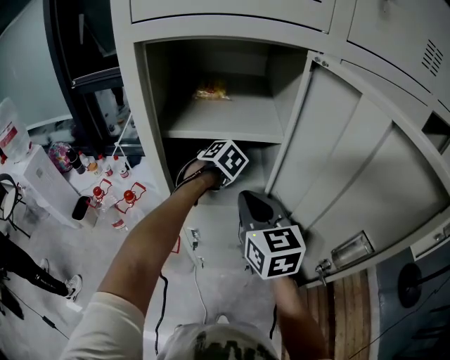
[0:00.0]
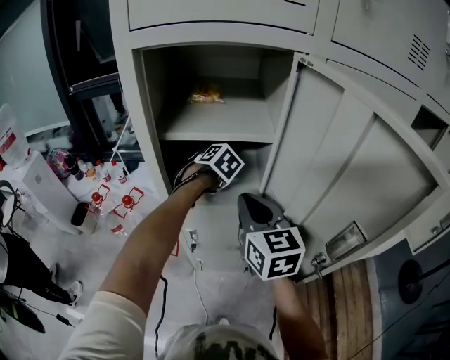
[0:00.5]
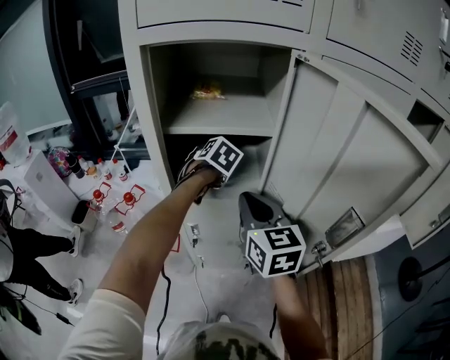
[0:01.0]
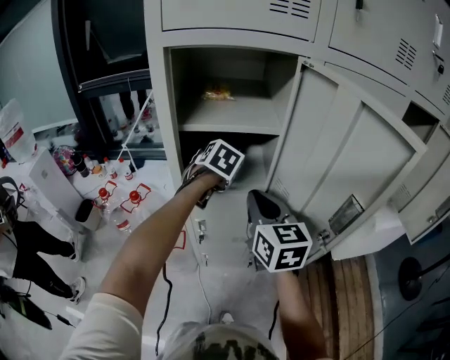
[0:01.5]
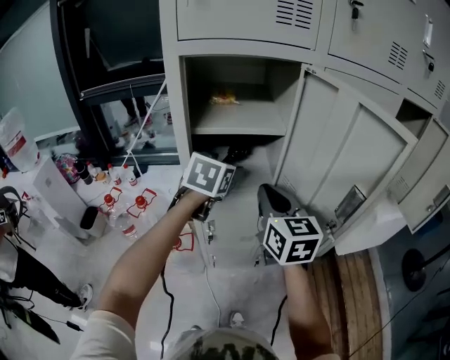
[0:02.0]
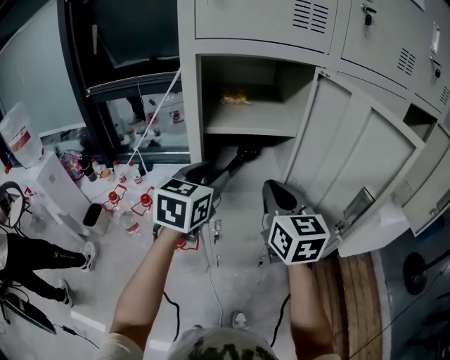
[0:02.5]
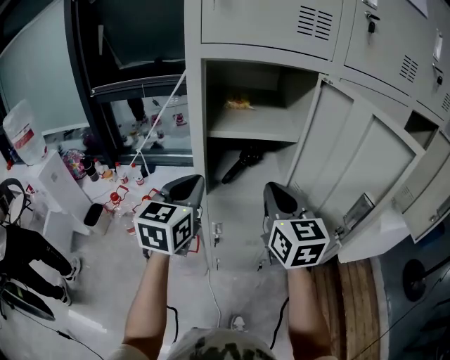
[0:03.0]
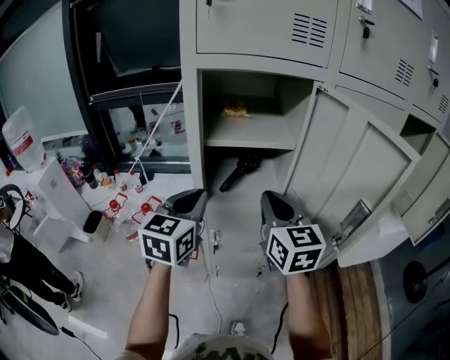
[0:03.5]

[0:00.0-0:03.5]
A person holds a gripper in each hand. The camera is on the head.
0:00.0 to 0:02.0: The right gripper moves backward, roughly 5 cm. Meanwhile the left gripper travels upward and backward by some 20 cm, turns by about 40 degrees, and opens.
0:02.0 to 0:03.5: The left gripper goes roughly 15 cm backward and to the left, changes its angle by approximately 20 degrees, and closes up.

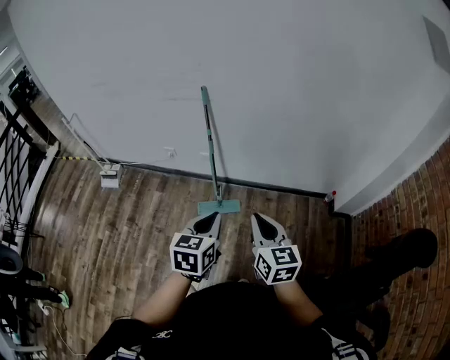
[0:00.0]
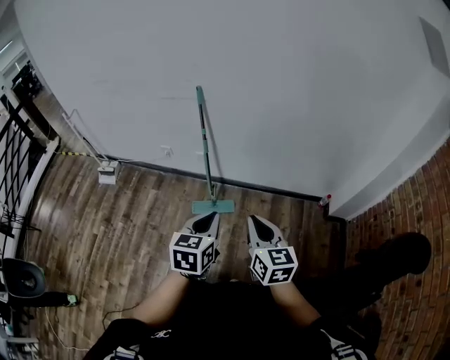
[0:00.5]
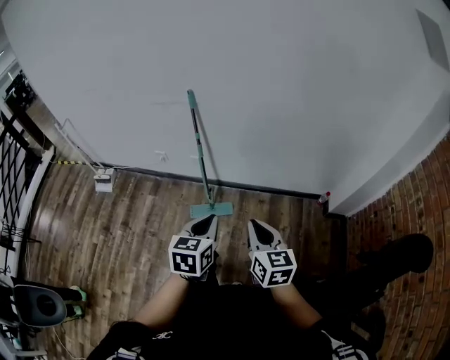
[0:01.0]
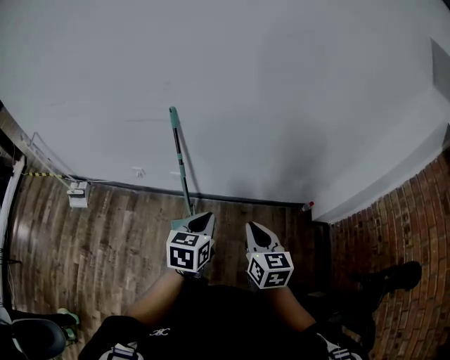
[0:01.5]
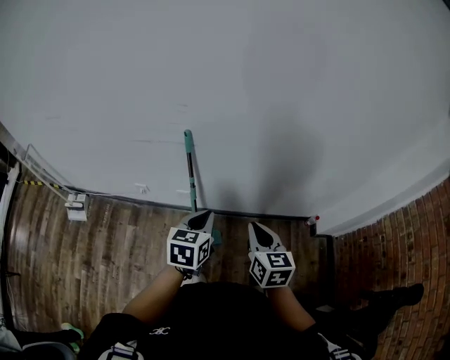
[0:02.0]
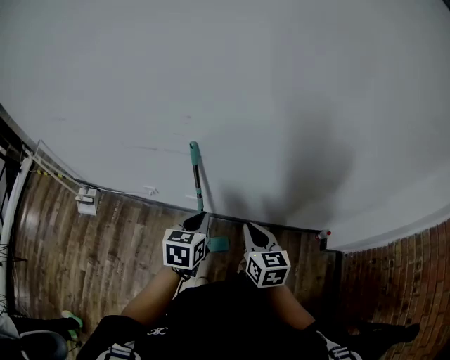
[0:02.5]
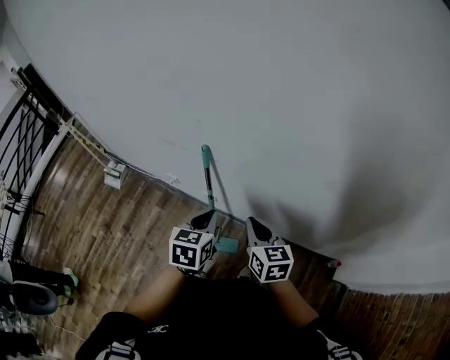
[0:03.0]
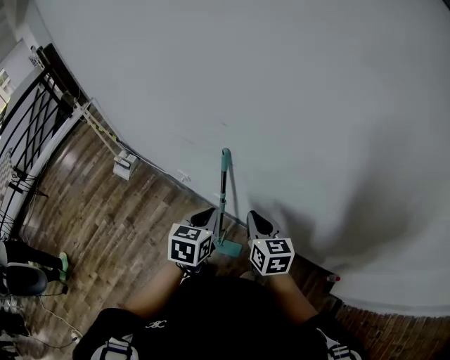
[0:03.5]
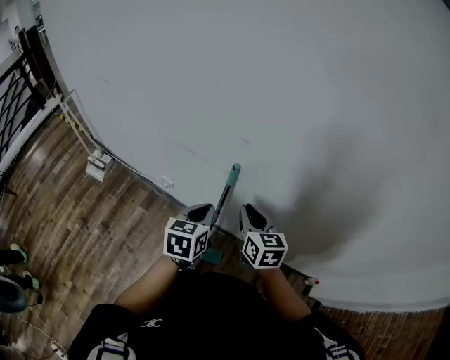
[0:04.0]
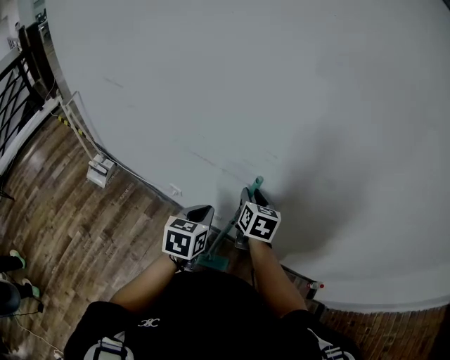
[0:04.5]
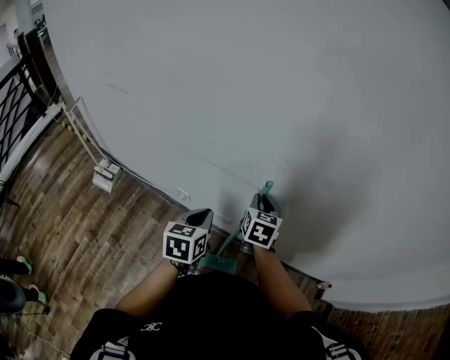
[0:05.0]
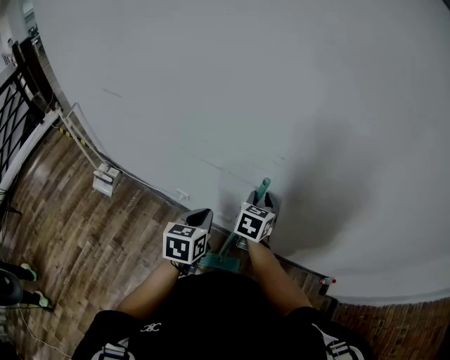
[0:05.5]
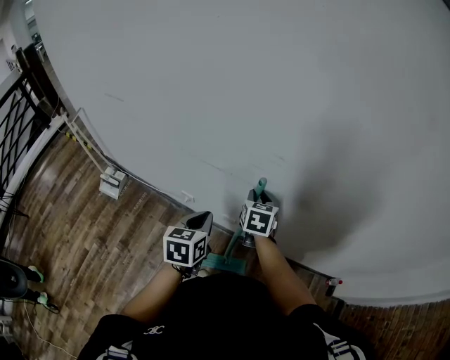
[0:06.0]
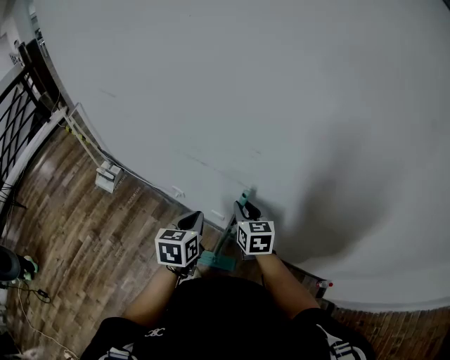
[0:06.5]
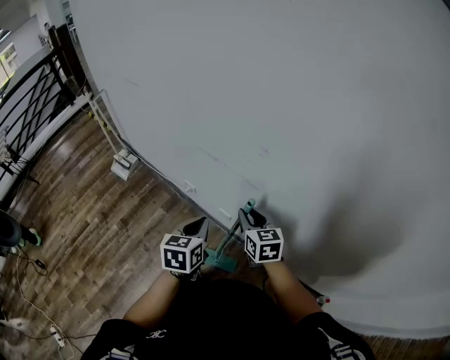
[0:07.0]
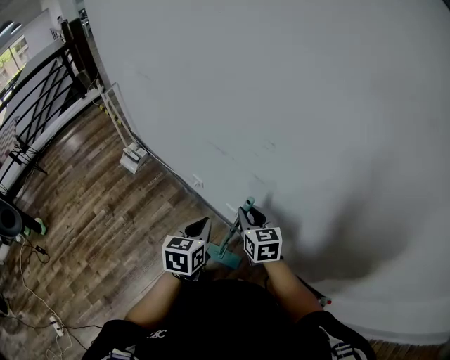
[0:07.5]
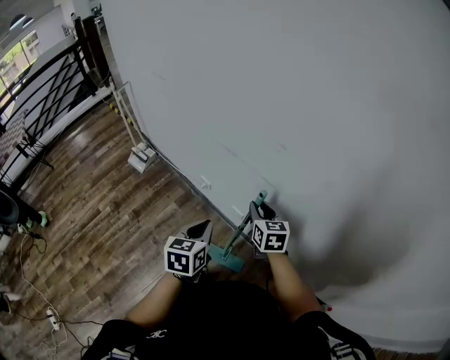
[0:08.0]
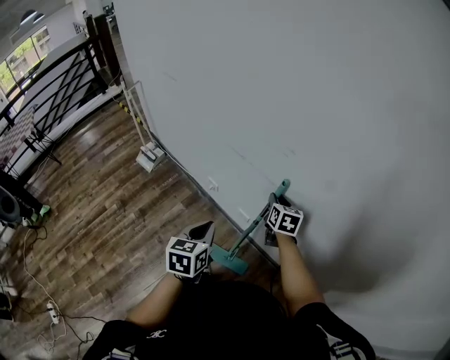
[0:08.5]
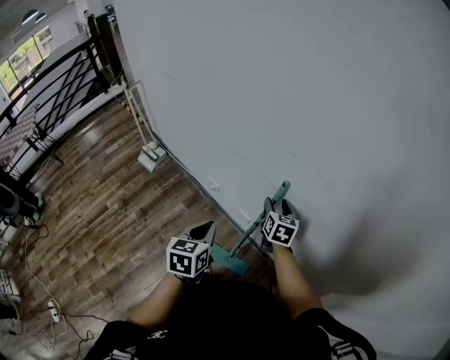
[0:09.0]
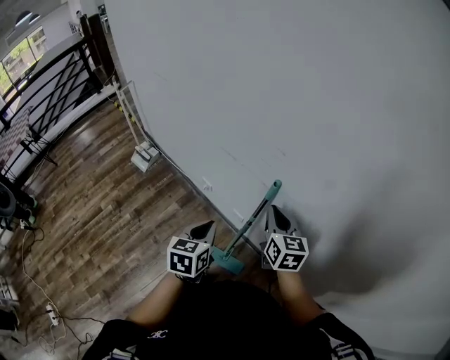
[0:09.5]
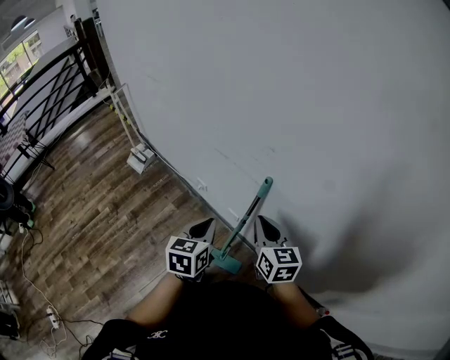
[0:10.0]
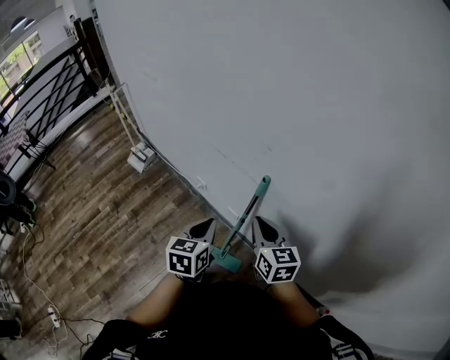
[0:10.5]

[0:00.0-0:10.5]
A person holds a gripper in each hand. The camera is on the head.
0:00.0 to 0:02.0: The grippers both shift forward by approximately 25 cm.
0:02.0 to 0:04.0: The right gripper shifts by roughly 25 cm, and turns by some 30 degrees, while the left gripper changes place by some 15 cm, and changes its angle by some 20 degrees.
0:04.0 to 0:06.5: Both grippers travel together to the left, some 5 cm.
0:06.5 to 0:08.5: The left gripper is displaced backward by roughly 10 cm. Meanwhile the right gripper changes place by roughly 5 cm.
0:08.5 to 0:10.5: The left gripper shifts some 5 cm to the right. The right gripper travels backward and upward by approximately 15 cm, and closes its fingers.

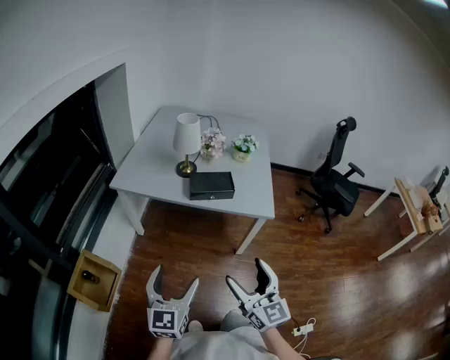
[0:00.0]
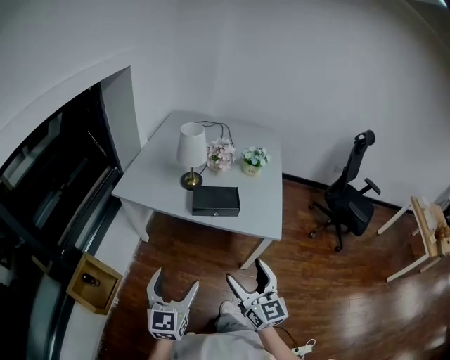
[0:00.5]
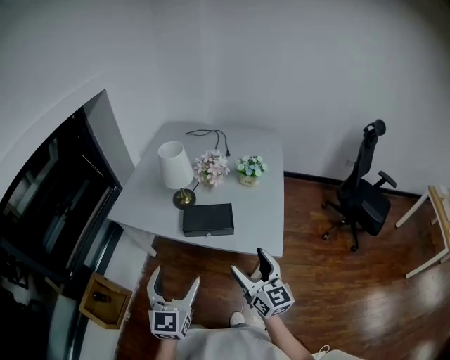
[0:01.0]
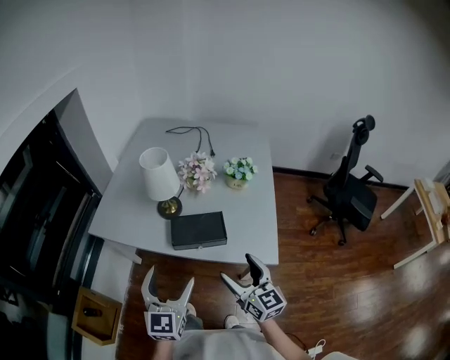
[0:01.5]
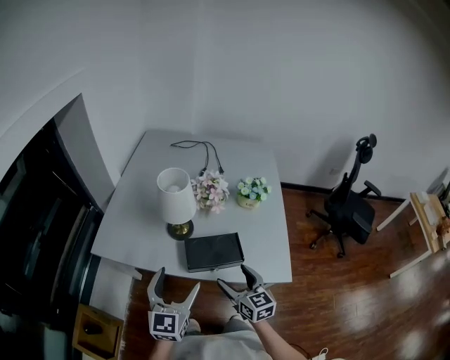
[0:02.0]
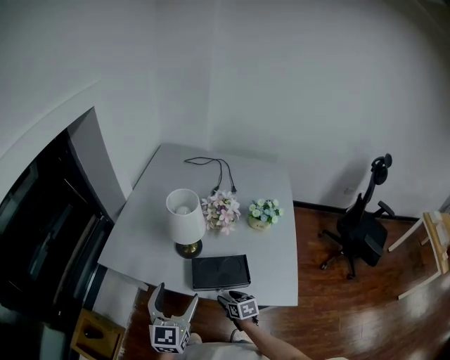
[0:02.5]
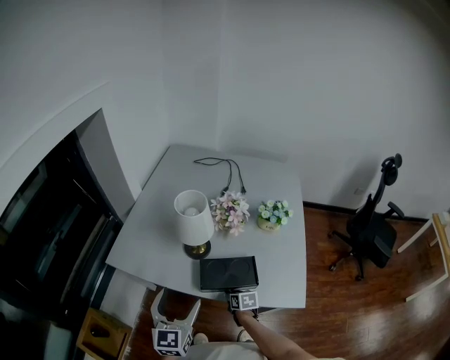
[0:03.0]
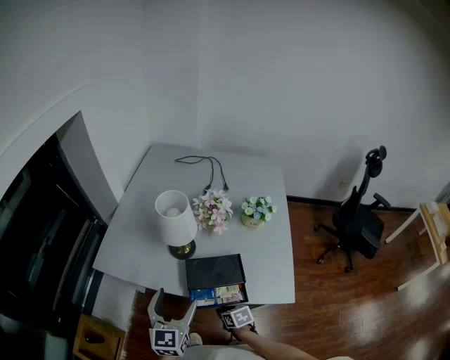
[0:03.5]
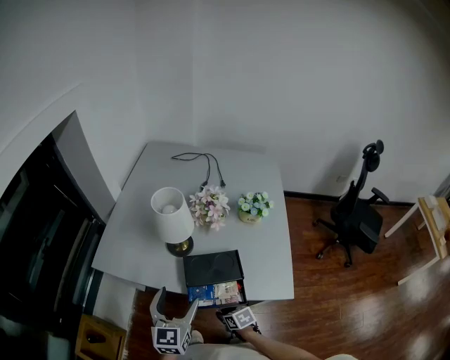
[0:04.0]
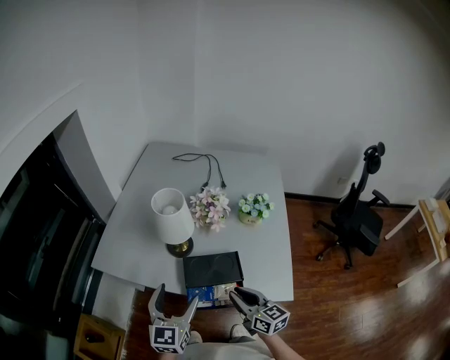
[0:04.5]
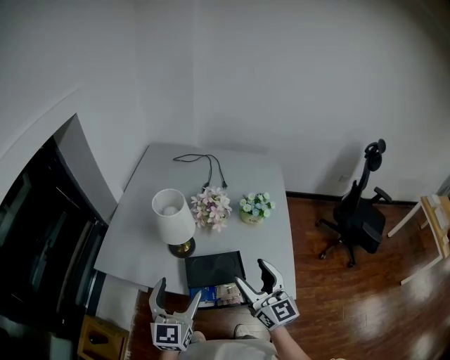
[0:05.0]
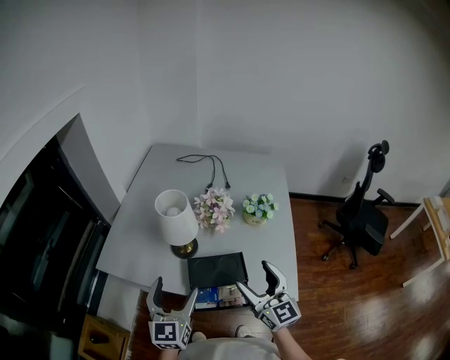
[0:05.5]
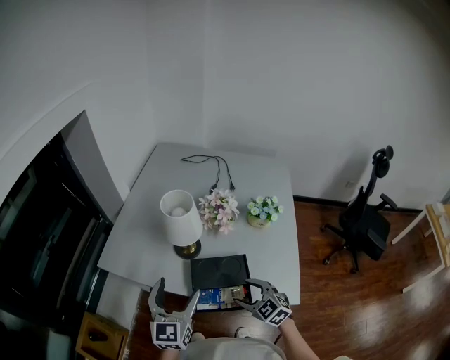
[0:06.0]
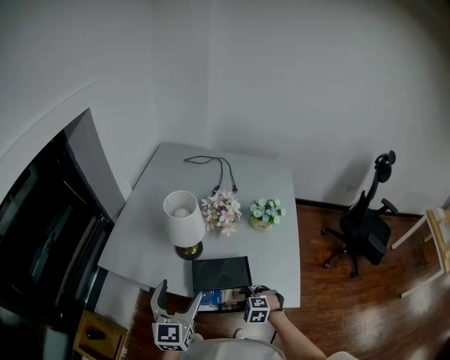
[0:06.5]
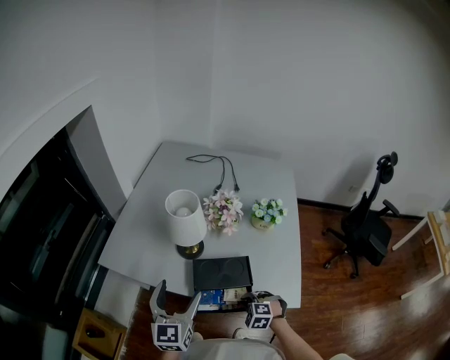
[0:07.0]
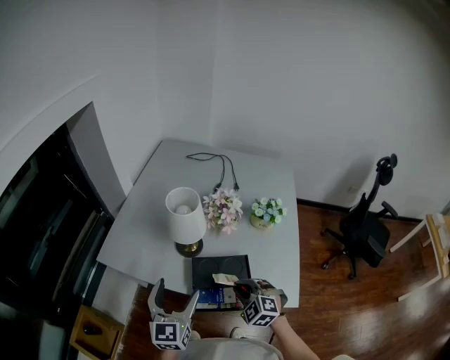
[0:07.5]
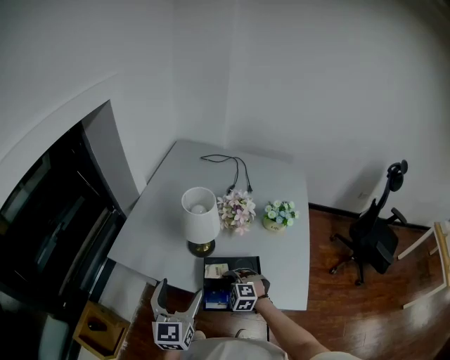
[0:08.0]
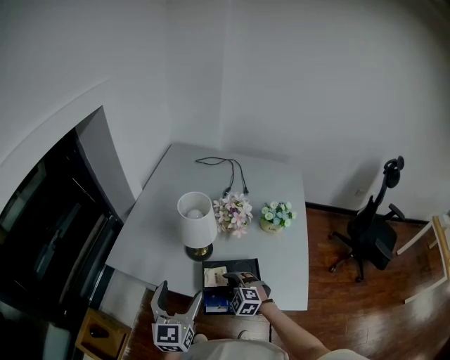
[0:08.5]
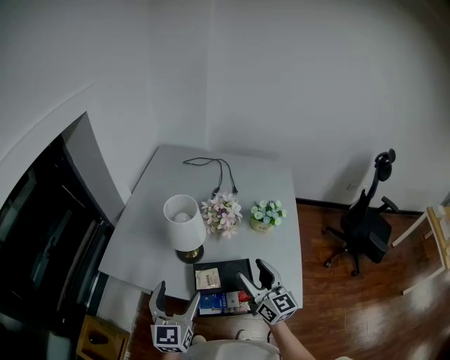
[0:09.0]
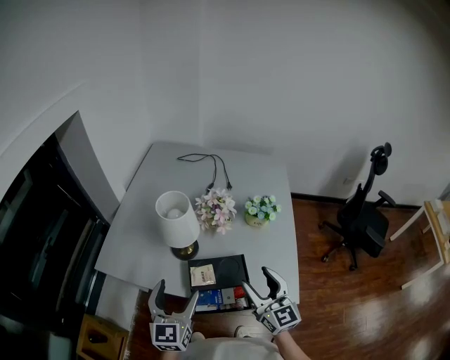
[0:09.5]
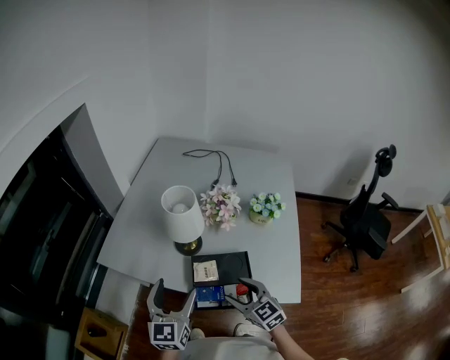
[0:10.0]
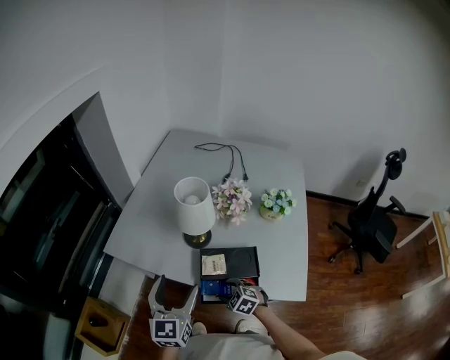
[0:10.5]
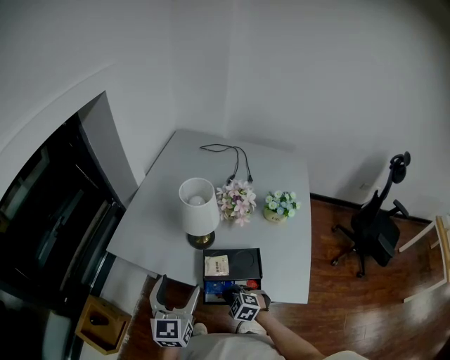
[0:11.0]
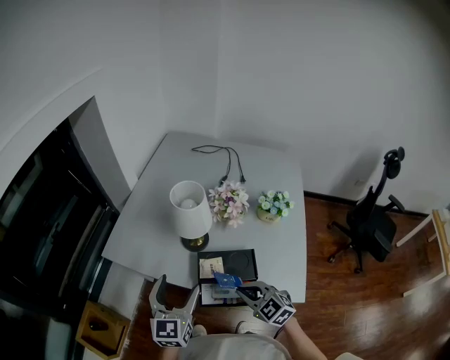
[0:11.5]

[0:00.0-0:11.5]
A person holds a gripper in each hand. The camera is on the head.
0:00.0 to 0:02.0: The two grippers go some 40 cm forward. The right gripper rotates roughly 20 degrees.
0:02.0 to 0:04.0: The right gripper moves downward, some 20 cm, points its fingers approximately 40 degrees further downward, and closes its fingers.
0:04.0 to 0:06.0: The right gripper travels upward and forward by approximately 20 cm, rotates around the line of its fingers by approximately 50 degrees, counterclockwise from behind, and opens. Meanwhile the left gripper changes place by approximately 5 cm.
0:06.0 to 0:07.5: The right gripper reaches some 15 cm downward, then returns, turns by about 20 degrees, and closes its fingers.
0:07.5 to 0:09.5: The right gripper travels upward and to the right by about 15 cm, points its fingers approximately 40 degrees further upward, and opens its fingers.
0:09.5 to 0:11.5: The right gripper heads downward and to the left, covering about 15 cm, angles its fingers downward, by about 40 degrees, and closes up.

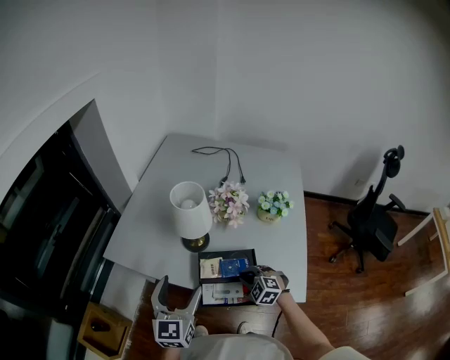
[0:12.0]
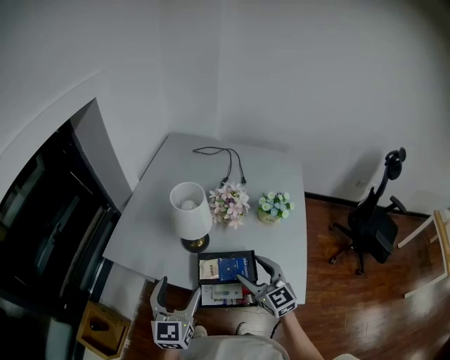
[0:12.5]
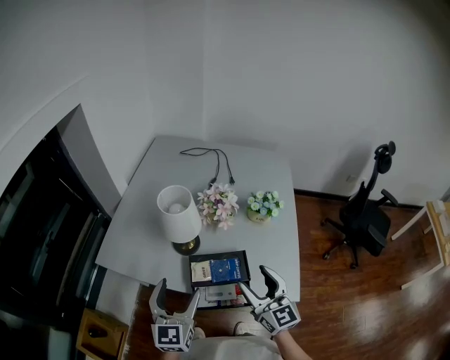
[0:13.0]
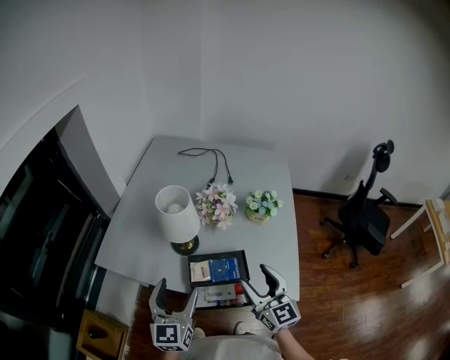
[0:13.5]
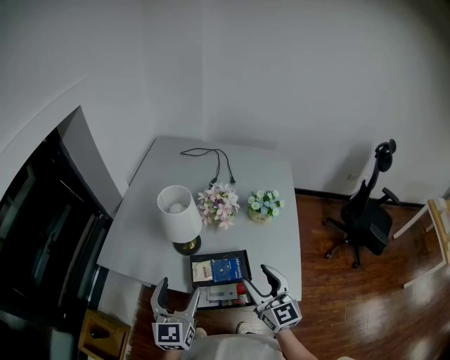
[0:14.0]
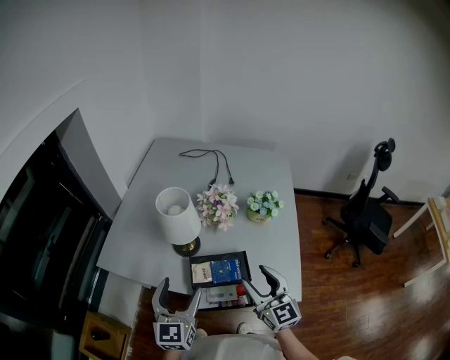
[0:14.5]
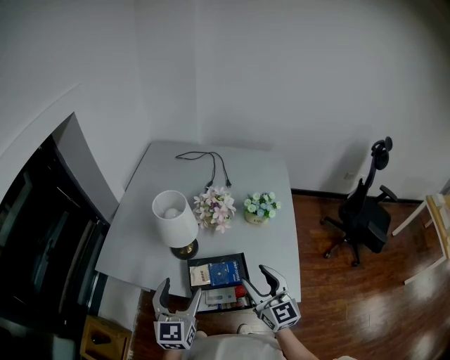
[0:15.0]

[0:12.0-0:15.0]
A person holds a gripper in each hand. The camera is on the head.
0:12.0 to 0:13.5: The right gripper heads upward, covering about 20 cm, points its fingers approximately 50 degrees further upward, and opens.
0:13.5 to 0:15.0: The grippers make only small movements.
